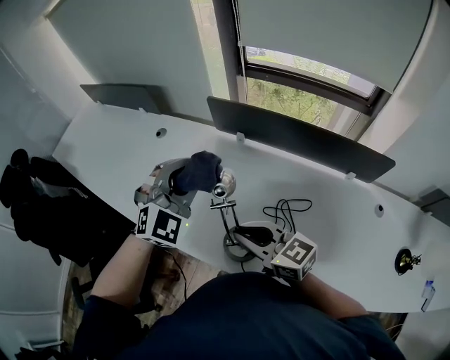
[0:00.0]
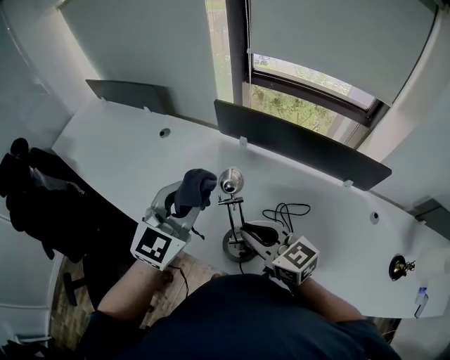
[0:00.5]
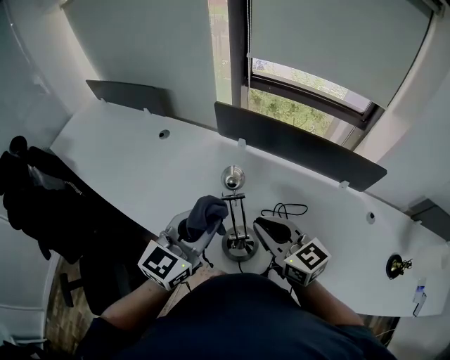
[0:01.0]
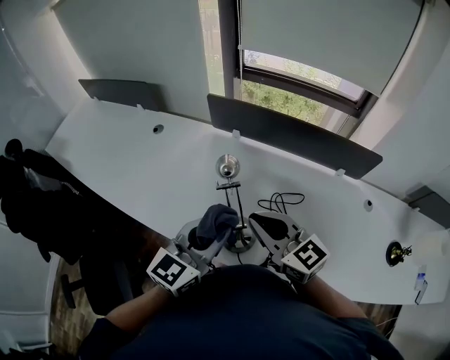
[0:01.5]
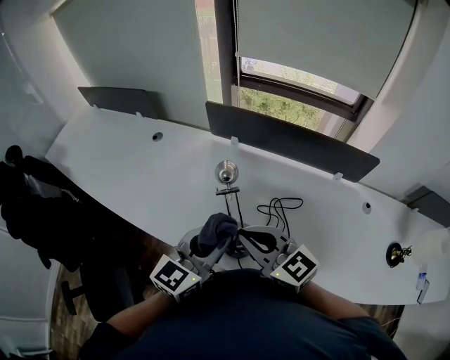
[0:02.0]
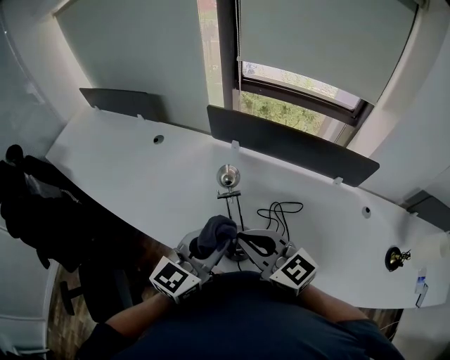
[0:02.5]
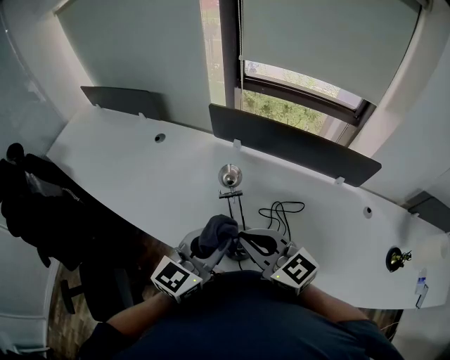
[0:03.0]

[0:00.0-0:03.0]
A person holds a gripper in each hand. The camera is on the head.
0:00.0 to 0:01.5: The left gripper goes roughly 15 cm backward, and twists about 50 degrees counterclockwise, seen from behind; the right gripper shifts by roughly 5 cm.
0:01.5 to 0:03.0: The grippers make only small movements.

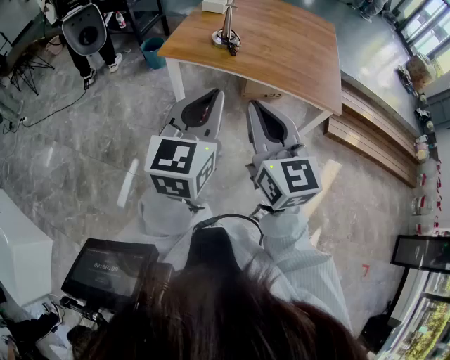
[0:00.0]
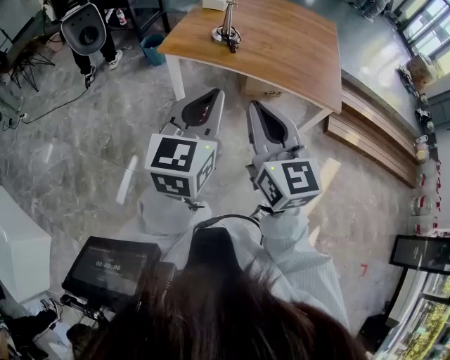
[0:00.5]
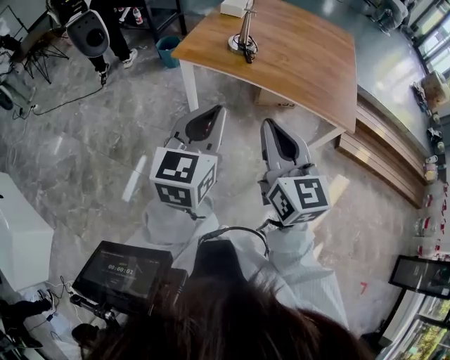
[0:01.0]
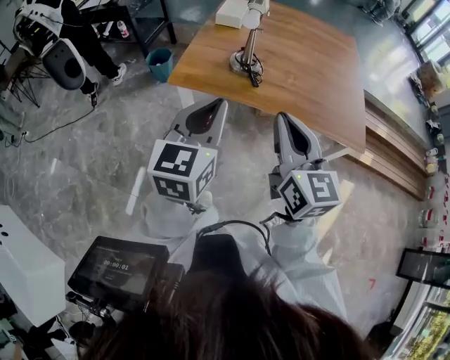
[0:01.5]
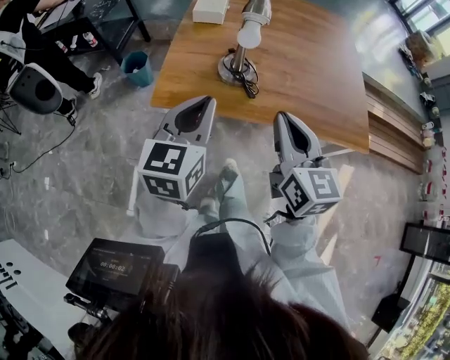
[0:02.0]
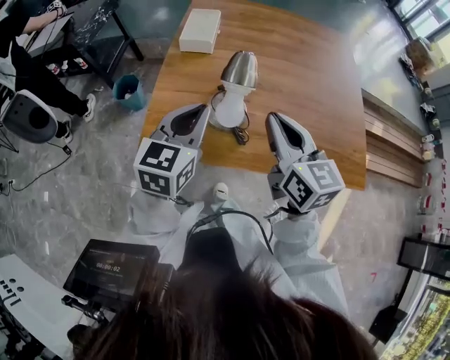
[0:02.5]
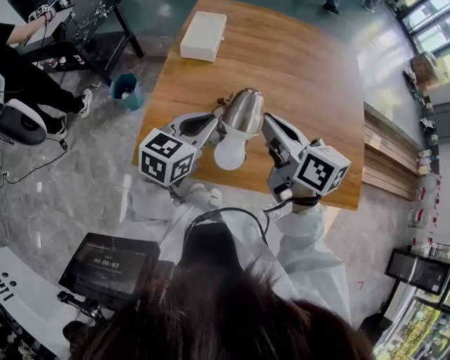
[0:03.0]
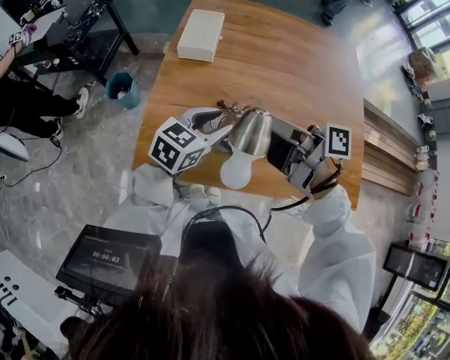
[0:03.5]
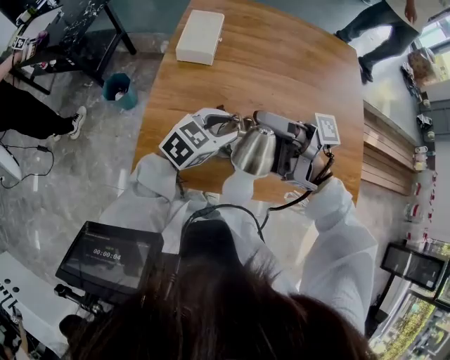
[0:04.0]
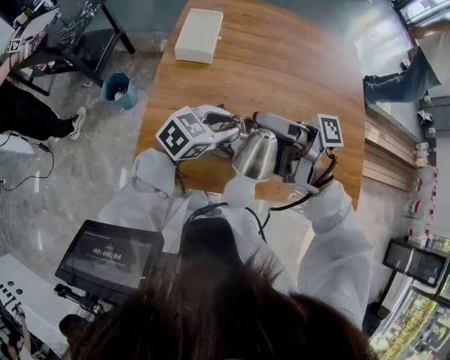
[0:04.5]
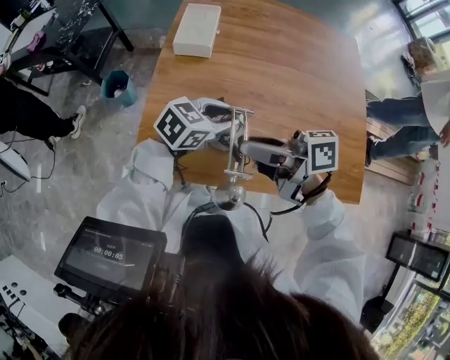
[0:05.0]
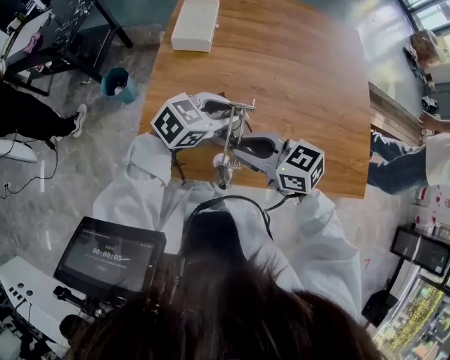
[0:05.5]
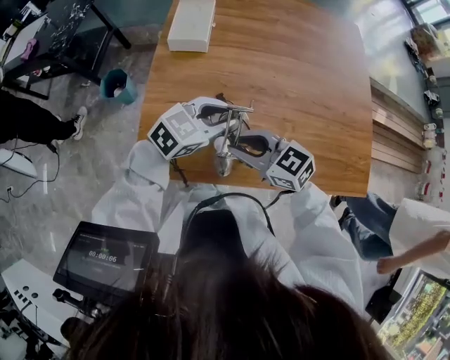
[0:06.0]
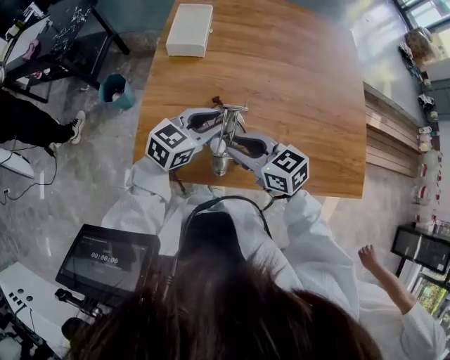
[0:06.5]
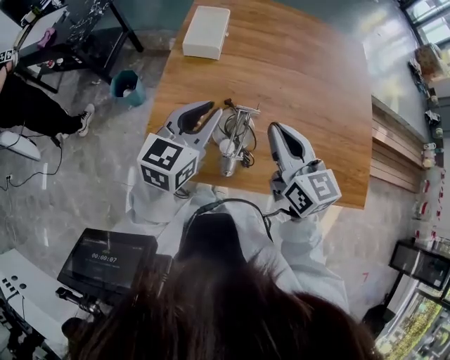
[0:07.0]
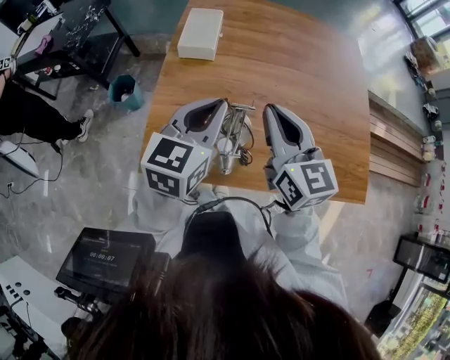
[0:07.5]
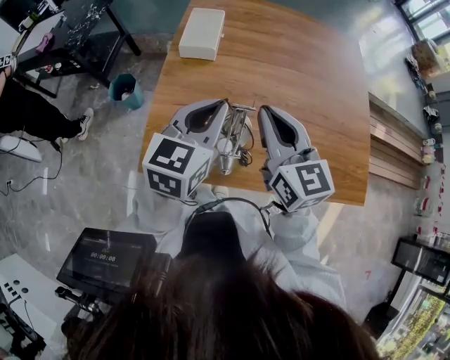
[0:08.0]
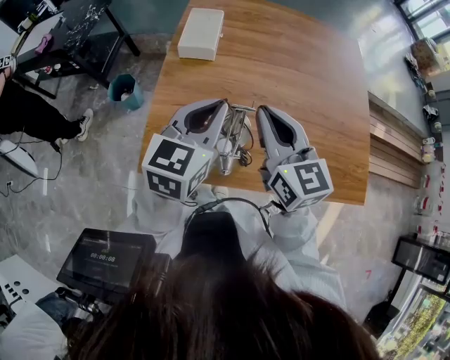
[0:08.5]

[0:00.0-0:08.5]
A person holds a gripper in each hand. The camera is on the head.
0:00.0 to 0:02.0: The two grippers go about 40 cm forward.
0:02.0 to 0:04.0: The left gripper moves approximately 35 cm, swivels some 40 degrees, and opens up, while the right gripper changes place by some 30 cm, rotates around the line of its fingers by approximately 80 degrees, clockwise from behind, and opens up.
0:04.0 to 0:06.5: The right gripper shifts roughly 15 cm downward, rotates around the line of its fingers by some 70 degrees, counterclockwise from behind, and closes its fingers.
0:06.5 to 0:08.5: Both grippers travel together upward, approximately 15 cm. The right gripper swivels about 40 degrees, and closes, while the left gripper changes its angle by approximately 20 degrees, and closes its fingers.

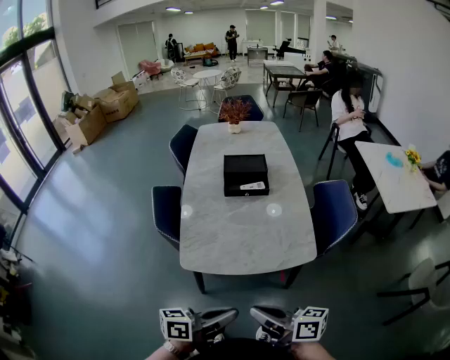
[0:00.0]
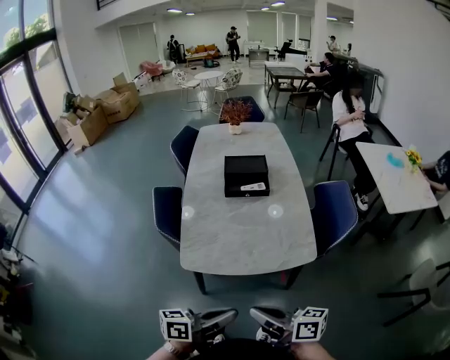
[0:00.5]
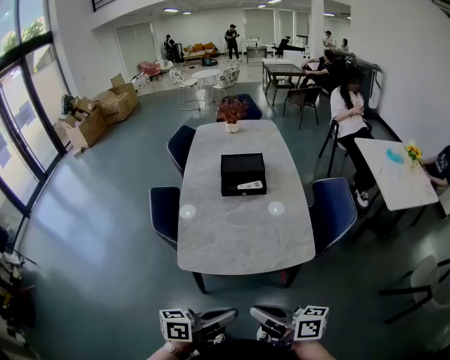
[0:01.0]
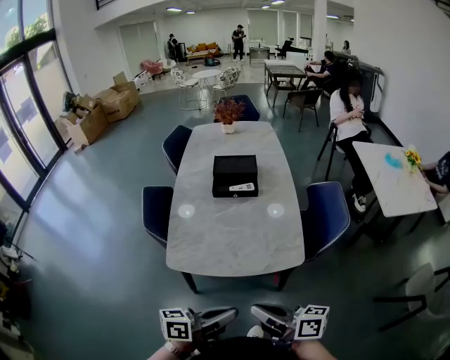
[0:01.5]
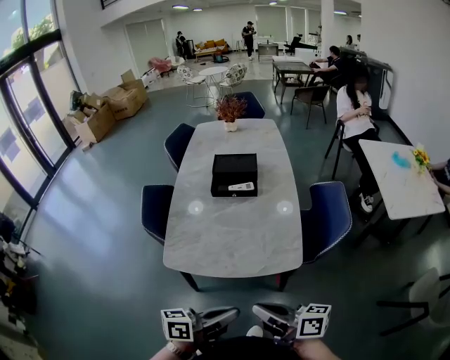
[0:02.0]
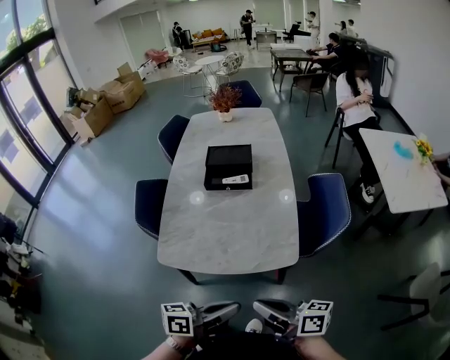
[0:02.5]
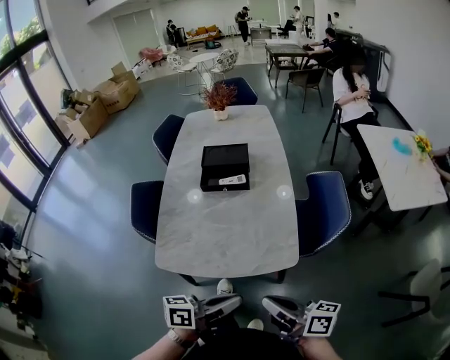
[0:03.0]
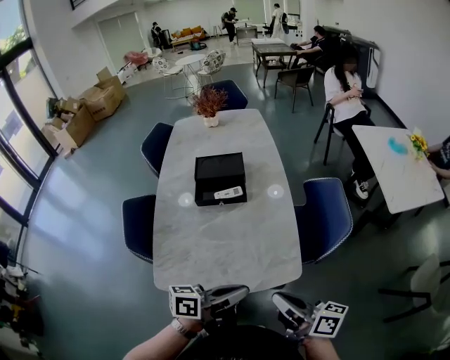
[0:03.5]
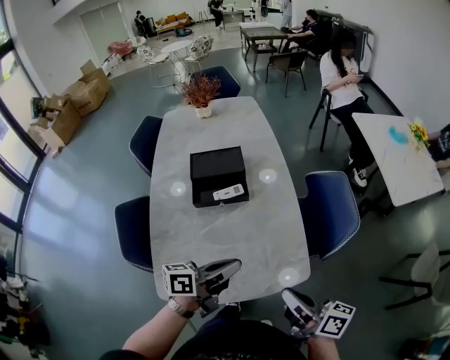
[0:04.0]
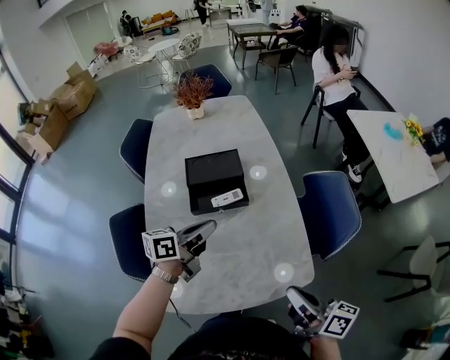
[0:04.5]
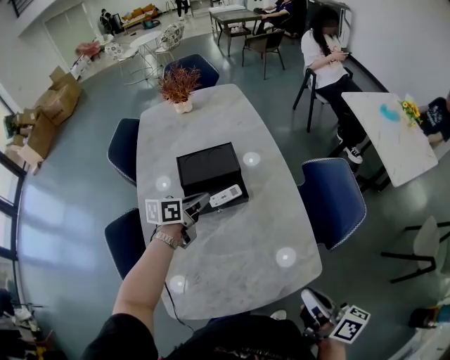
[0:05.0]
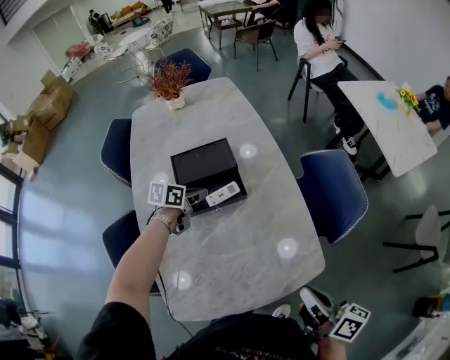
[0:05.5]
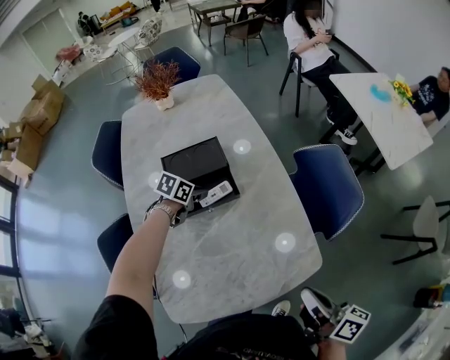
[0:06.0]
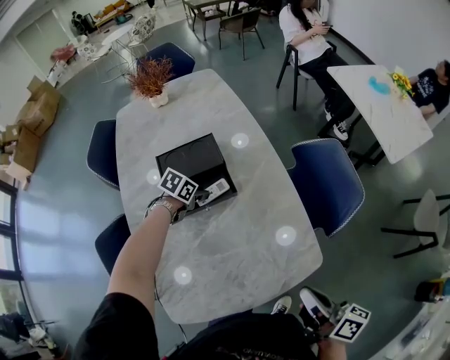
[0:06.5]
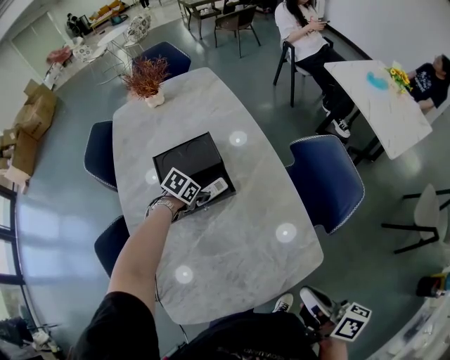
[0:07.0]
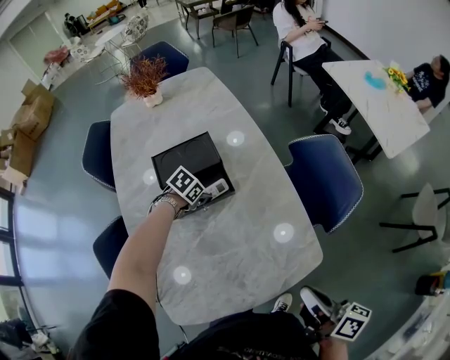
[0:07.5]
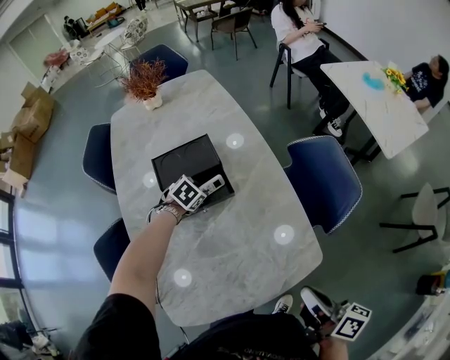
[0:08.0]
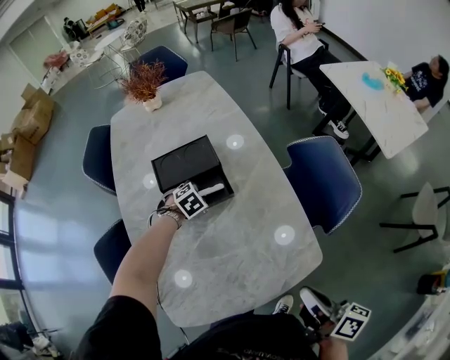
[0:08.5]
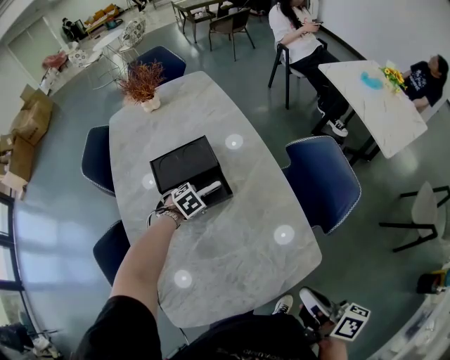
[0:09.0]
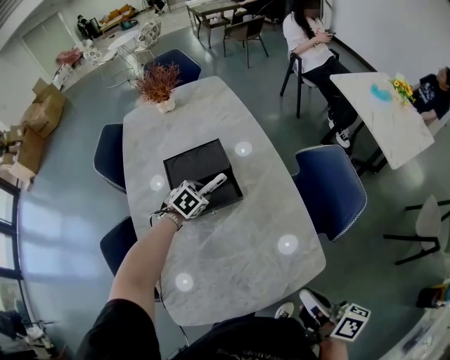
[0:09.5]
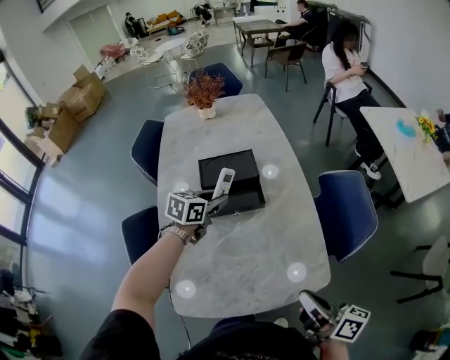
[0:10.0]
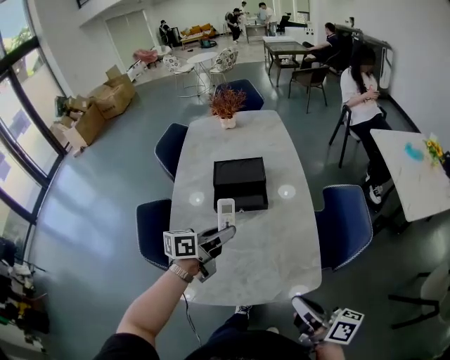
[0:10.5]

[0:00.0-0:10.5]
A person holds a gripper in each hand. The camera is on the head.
0:00.0 to 0:02.0: The two grippers go some 10 cm to the right.
0:02.0 to 0:04.0: The left gripper shifts roughly 30 cm forward. Meanwhile the right gripper travels forward by about 15 cm, and swivels approximately 30 degrees.
0:04.0 to 0:06.5: The right gripper swivels roughly 20 degrees. Meanwhile the left gripper moves forward, downward and to the left, about 40 cm, tilts its fingers roughly 50 degrees downward, and opens.
0:06.5 to 0:08.5: The left gripper swivels approximately 40 degrees.
0:08.5 to 0:10.5: The right gripper ends up approximately 5 cm from where it was, and turns by some 30 degrees. Meanwhile the left gripper shifts roughly 30 cm upward and backward, and angles its fingers upward, by roughly 60 degrees.

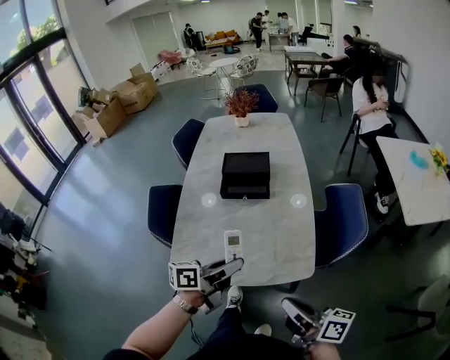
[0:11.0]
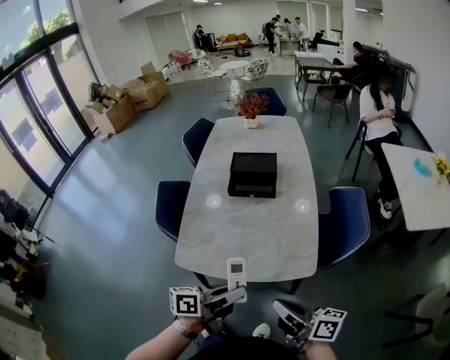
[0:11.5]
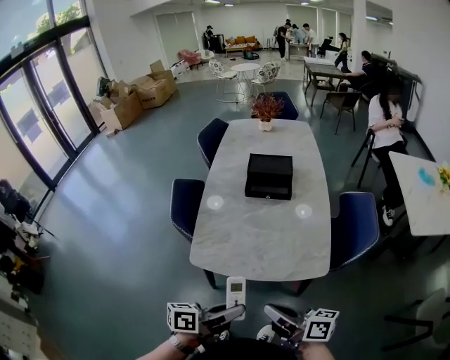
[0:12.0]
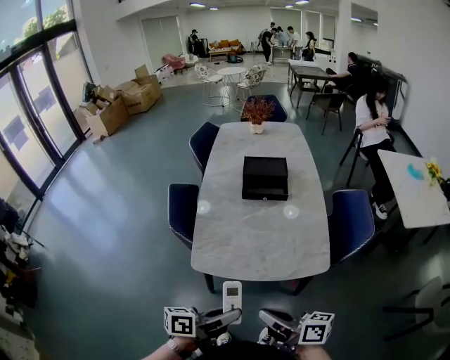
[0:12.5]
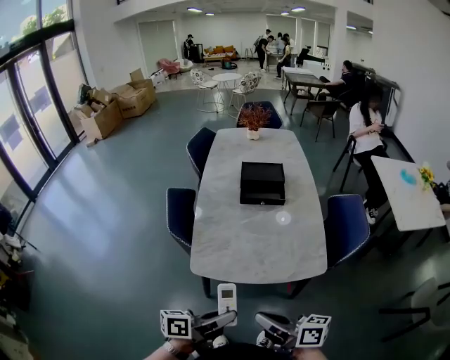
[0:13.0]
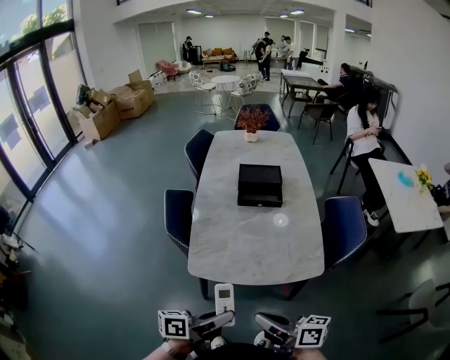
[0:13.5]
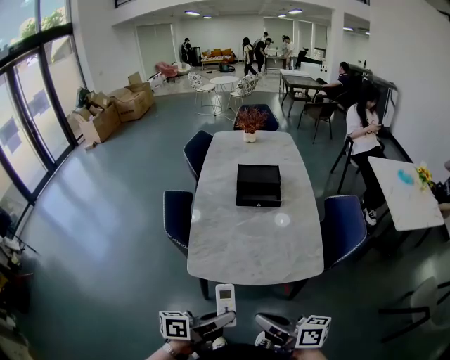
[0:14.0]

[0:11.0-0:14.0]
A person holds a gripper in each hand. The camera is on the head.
0:11.0 to 0:12.5: The right gripper travels to the left and backward by about 20 cm, while the left gripper heads backward and to the left, covering some 20 cm.
0:12.5 to 0:14.0: The grippers make only small movements.

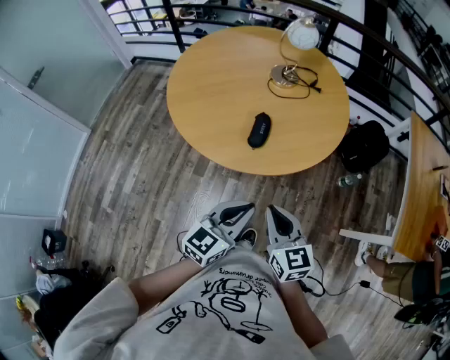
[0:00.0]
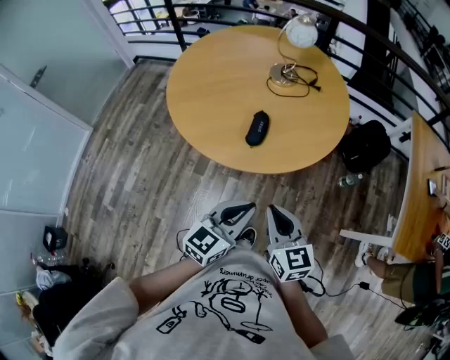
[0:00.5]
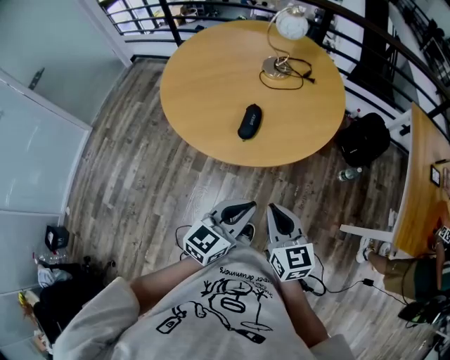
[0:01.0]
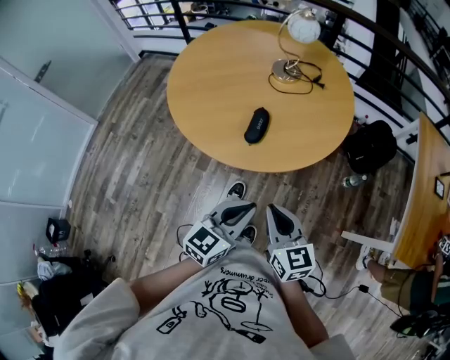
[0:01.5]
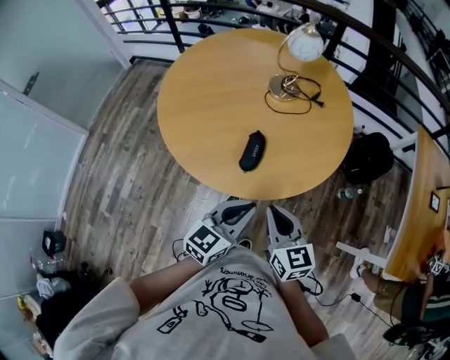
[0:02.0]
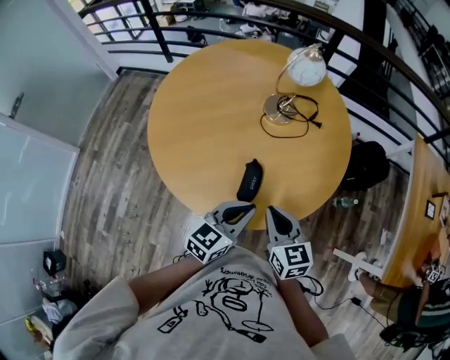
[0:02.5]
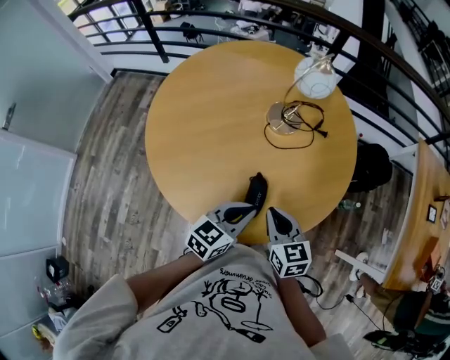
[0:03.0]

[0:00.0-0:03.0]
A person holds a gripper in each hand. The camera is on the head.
0:01.5 to 0:03.0: The grippers both shift forward by roughly 30 cm.
